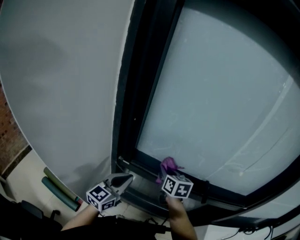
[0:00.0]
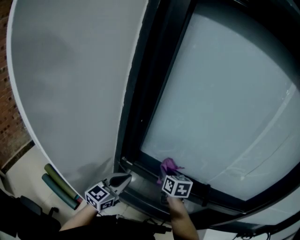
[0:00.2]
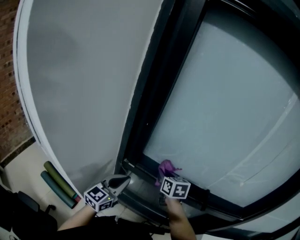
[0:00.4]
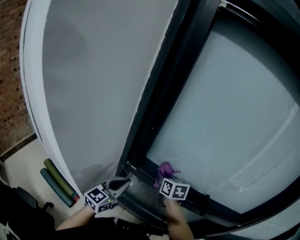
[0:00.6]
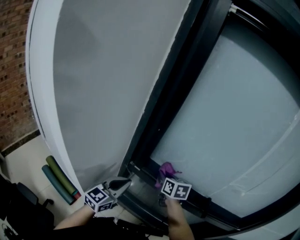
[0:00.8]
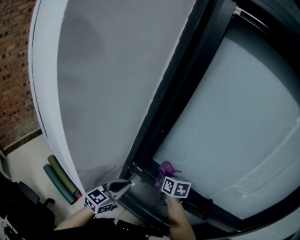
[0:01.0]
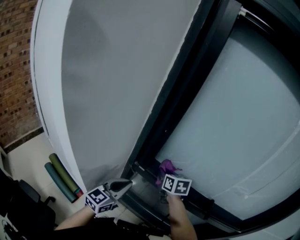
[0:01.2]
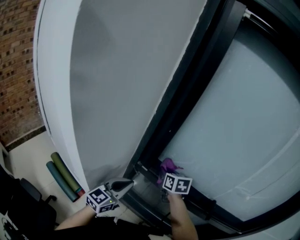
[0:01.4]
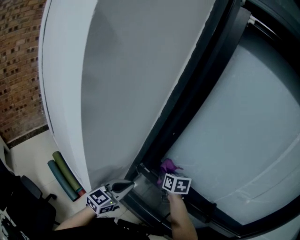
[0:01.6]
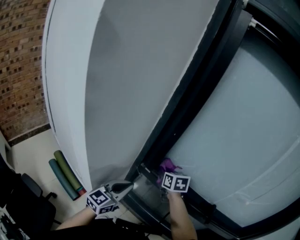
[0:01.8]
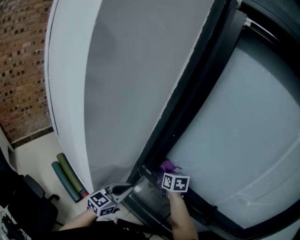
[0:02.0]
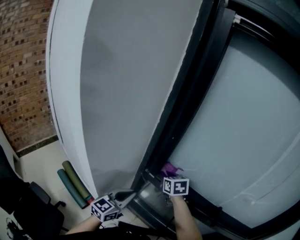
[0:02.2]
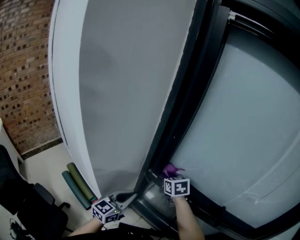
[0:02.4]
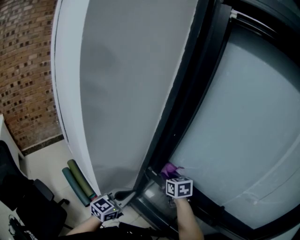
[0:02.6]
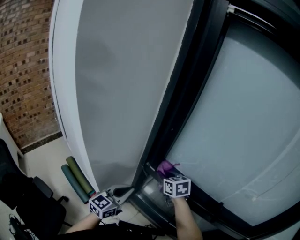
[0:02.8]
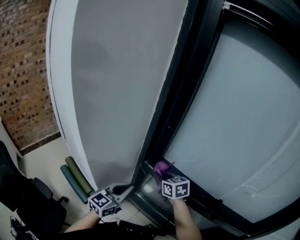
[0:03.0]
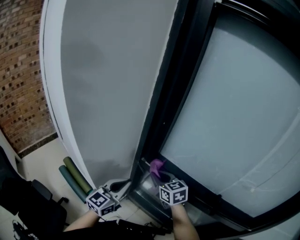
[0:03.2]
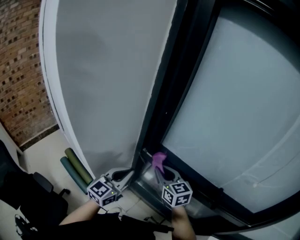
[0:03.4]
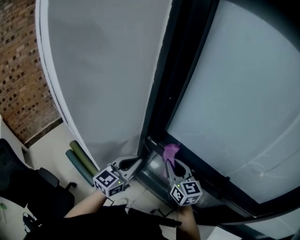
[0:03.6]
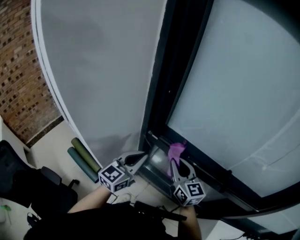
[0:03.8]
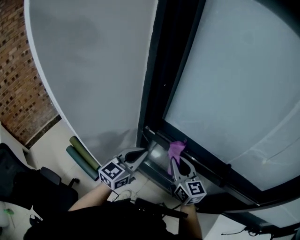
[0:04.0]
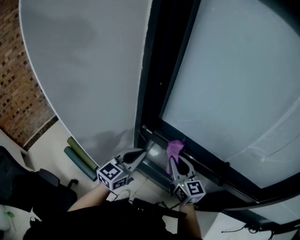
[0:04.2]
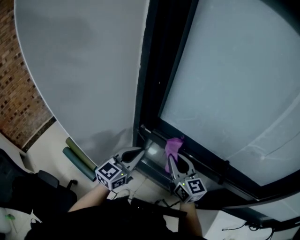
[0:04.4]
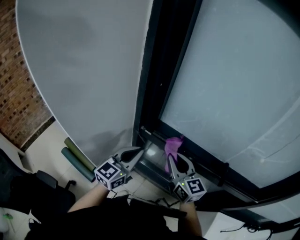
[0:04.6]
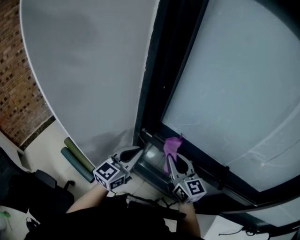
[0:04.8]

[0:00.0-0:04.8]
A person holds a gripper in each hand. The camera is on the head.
0:00.0 to 0:01.6: The right gripper is displaced to the left by about 10 cm, and changes its angle by some 20 degrees. The left gripper travels to the left by approximately 5 cm.
0:01.6 to 0:03.2: The right gripper goes about 10 cm backward, and rotates about 20 degrees.
0:03.2 to 0:04.8: The left gripper ends up roughly 5 cm from where it was. The right gripper shifts some 10 cm to the right and backward, and swivels approximately 30 degrees.

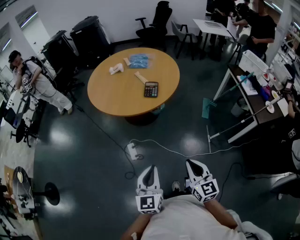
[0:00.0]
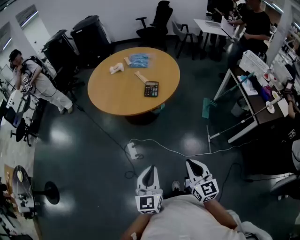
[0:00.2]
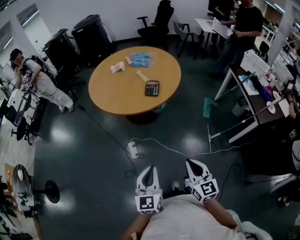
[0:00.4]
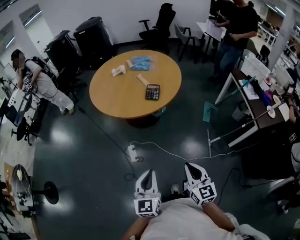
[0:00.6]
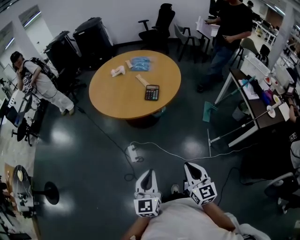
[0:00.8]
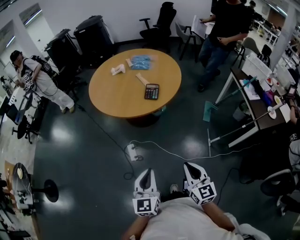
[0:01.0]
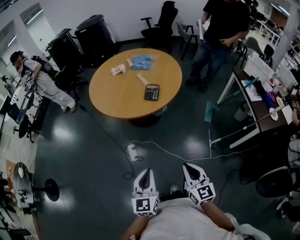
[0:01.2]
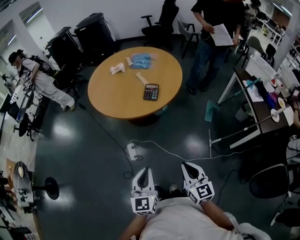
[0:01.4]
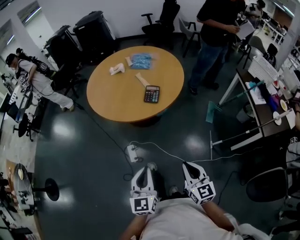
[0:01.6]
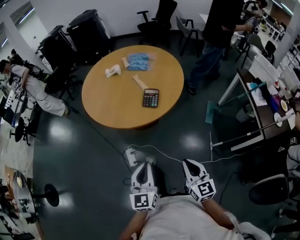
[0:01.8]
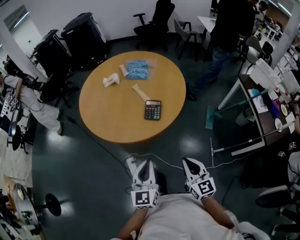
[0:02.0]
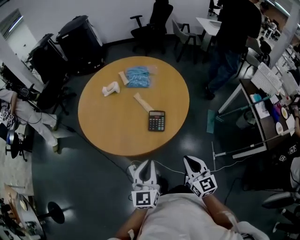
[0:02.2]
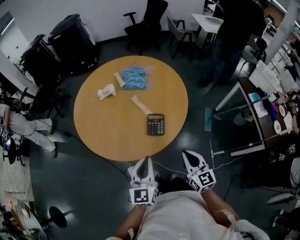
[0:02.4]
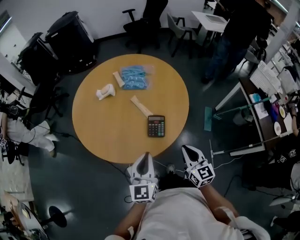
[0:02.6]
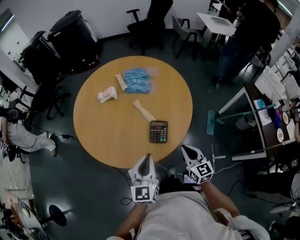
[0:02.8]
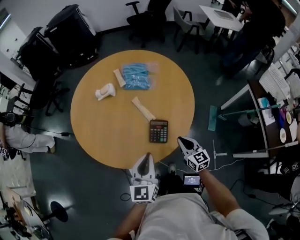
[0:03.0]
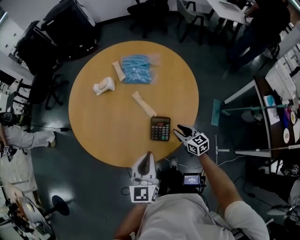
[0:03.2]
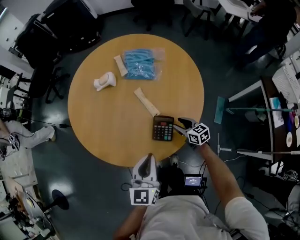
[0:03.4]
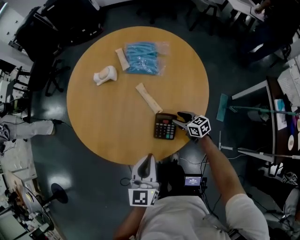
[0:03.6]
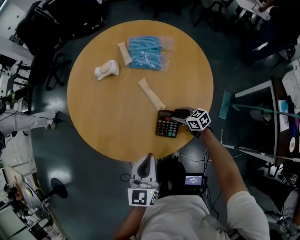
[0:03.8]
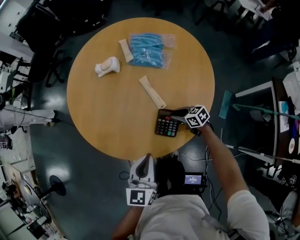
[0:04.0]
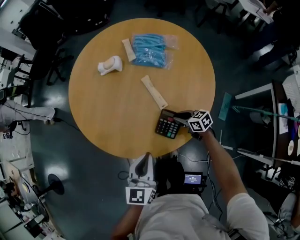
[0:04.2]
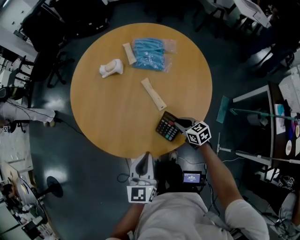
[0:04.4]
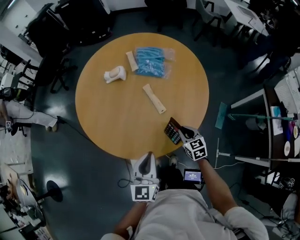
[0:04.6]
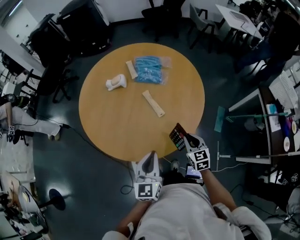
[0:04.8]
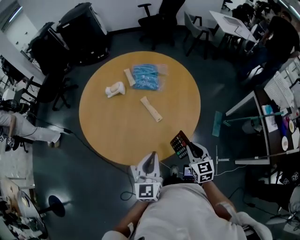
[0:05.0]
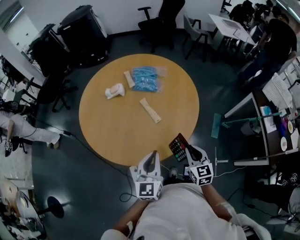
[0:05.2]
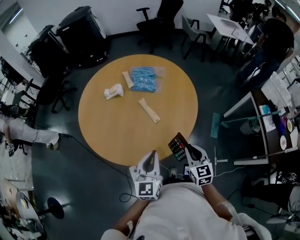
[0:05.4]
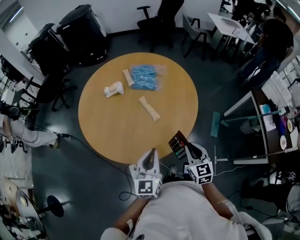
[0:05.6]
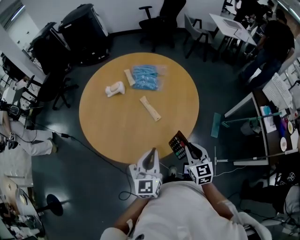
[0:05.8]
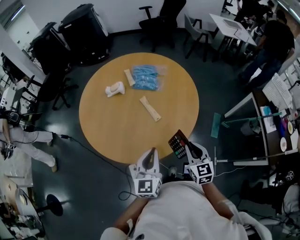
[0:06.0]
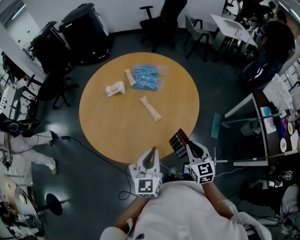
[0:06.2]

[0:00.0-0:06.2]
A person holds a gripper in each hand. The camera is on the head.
0:00.0 to 0:01.6: Both grippers travel together forward, some 10 cm.
0:01.6 to 0:03.2: Both grippers are carried forward, about 50 cm. The right gripper changes its angle by some 20 degrees, and opens up.
0:03.2 to 0:04.6: The right gripper goes downward and returns, some 10 cm each way, and opens, then closes once more.
0:04.6 to 0:06.2: The right gripper shifts some 20 cm upward and backward, and swivels about 20 degrees. Meanwhile the left gripper travels upward by roughly 5 cm.

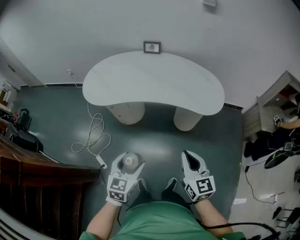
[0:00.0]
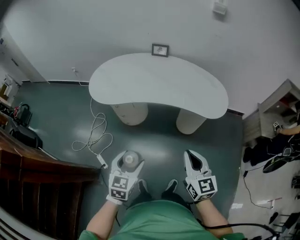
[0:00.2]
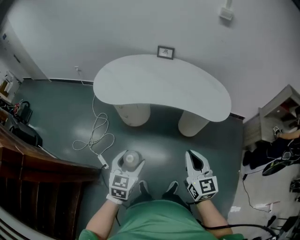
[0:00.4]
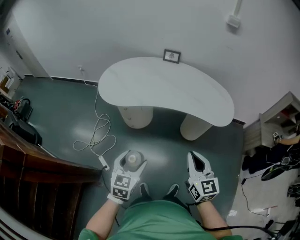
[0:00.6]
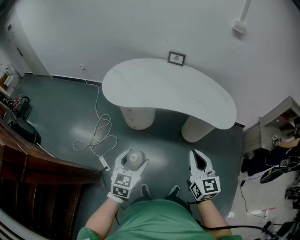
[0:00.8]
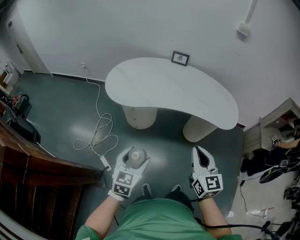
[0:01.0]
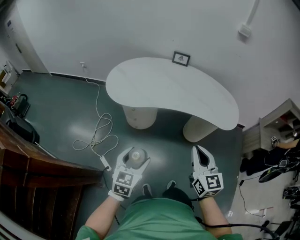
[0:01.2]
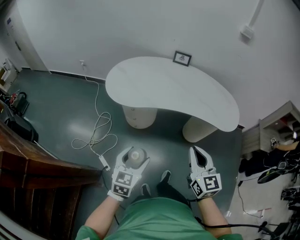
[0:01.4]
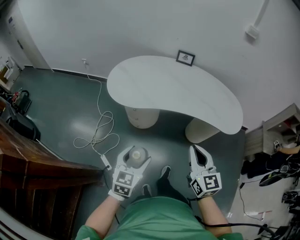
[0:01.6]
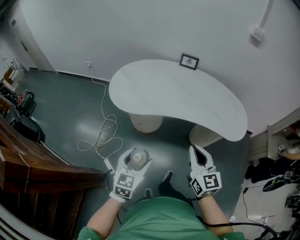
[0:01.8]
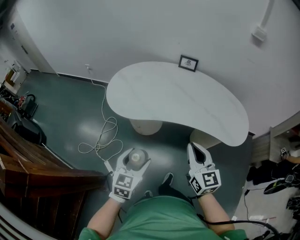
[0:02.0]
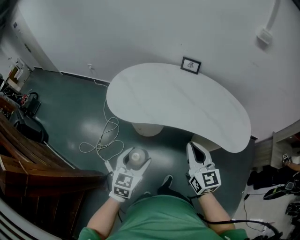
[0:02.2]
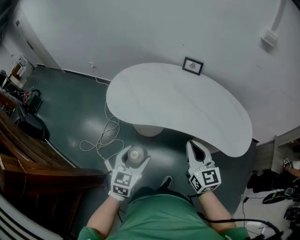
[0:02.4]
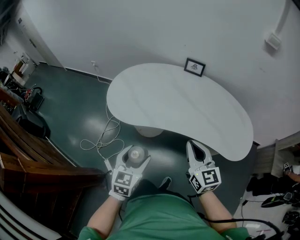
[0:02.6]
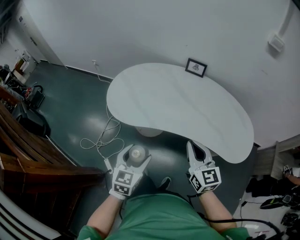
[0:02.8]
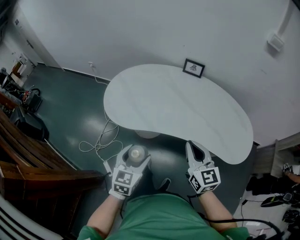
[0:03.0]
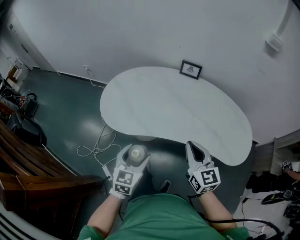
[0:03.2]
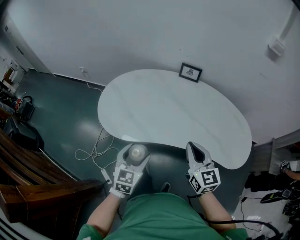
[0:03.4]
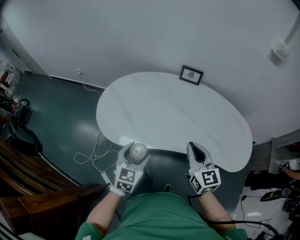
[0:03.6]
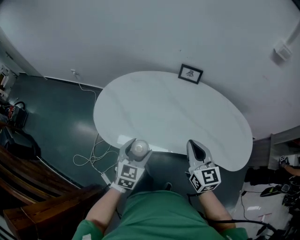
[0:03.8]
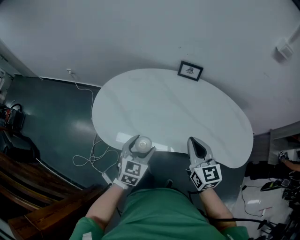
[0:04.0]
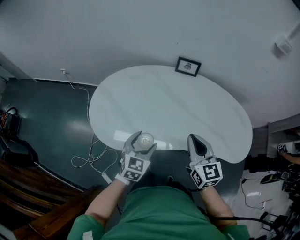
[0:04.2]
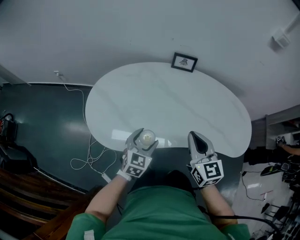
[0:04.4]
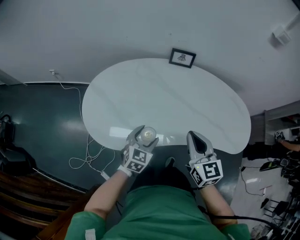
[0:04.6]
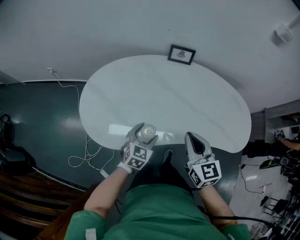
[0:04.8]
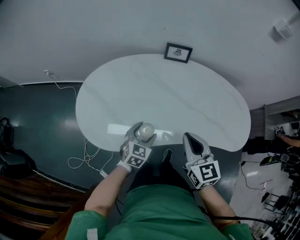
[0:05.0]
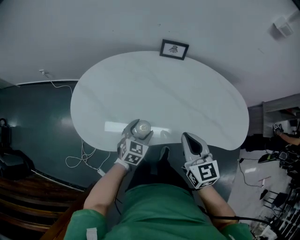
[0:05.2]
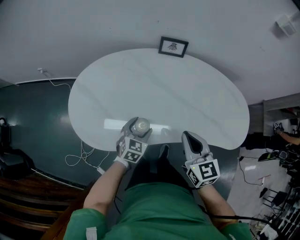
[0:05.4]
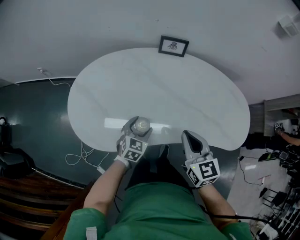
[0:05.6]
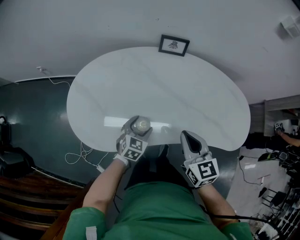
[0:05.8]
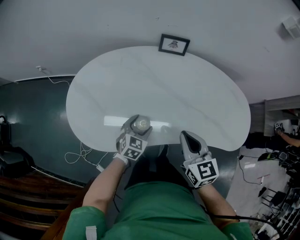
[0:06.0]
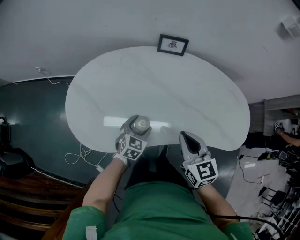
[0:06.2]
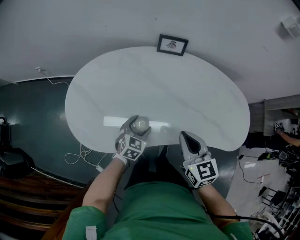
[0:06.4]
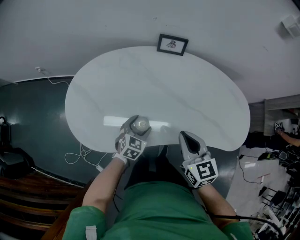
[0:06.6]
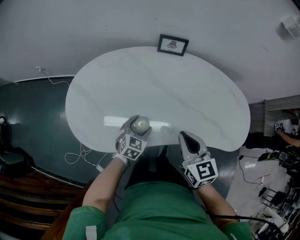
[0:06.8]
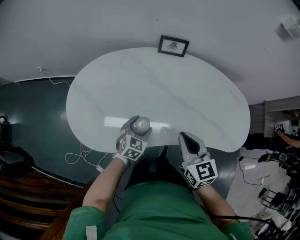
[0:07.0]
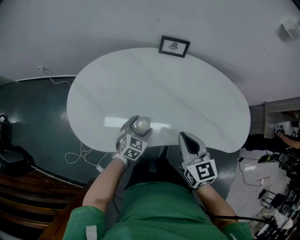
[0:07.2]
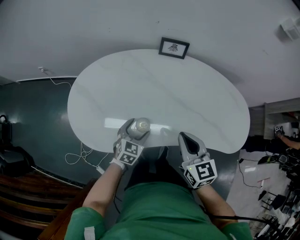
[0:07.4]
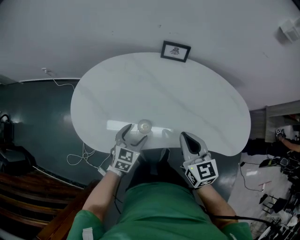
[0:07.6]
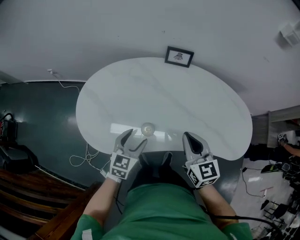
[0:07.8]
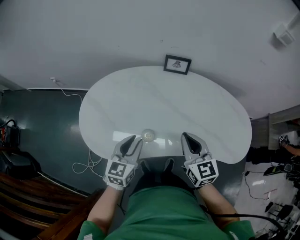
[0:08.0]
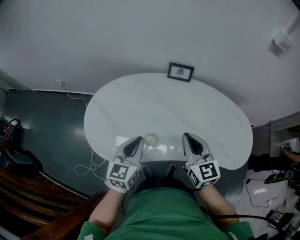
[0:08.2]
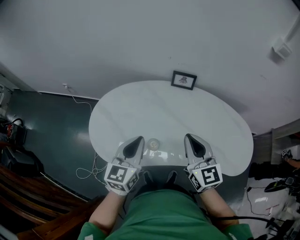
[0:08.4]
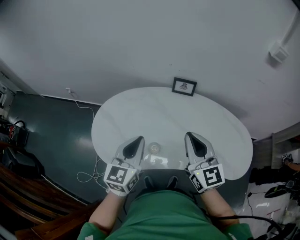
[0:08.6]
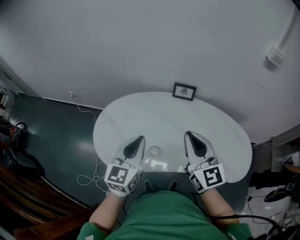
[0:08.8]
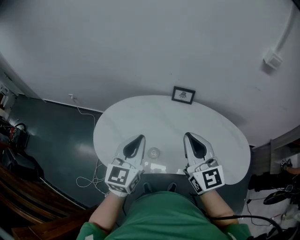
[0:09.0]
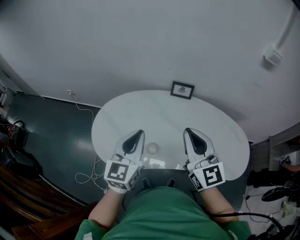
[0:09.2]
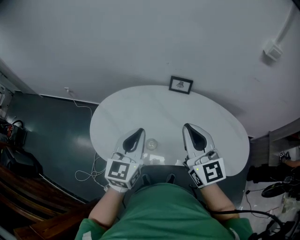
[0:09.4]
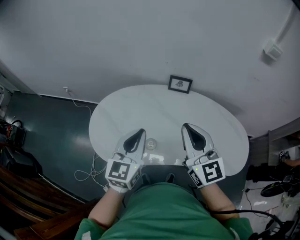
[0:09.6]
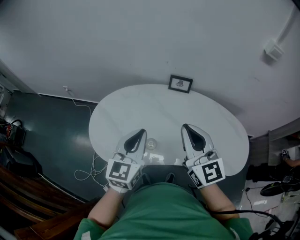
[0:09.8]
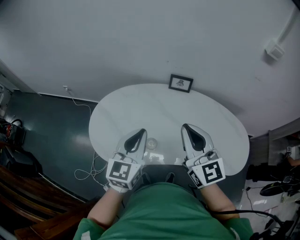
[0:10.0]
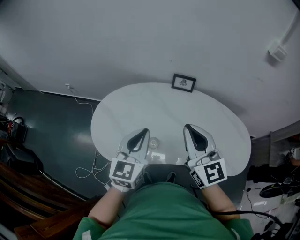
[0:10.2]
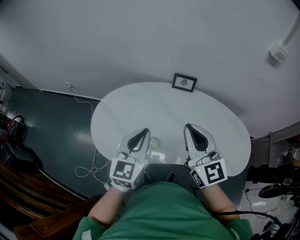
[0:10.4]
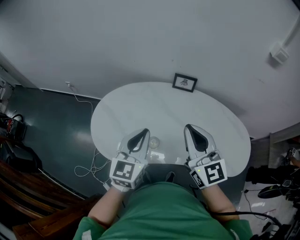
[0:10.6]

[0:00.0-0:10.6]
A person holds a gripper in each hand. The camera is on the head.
0:00.0 to 0:01.6: The two grippers go some 20 cm to the left.
0:01.6 to 0:03.0: Both grippers travel together forward, roughly 20 cm.
0:03.0 to 0:04.6: The right gripper moves forward and to the left, approximately 15 cm. Meanwhile the left gripper travels forward and downward by about 25 cm, and changes its angle by about 30 degrees.
0:04.6 to 0:06.0: The right gripper travels downward by roughly 5 cm. The left gripper goes some 10 cm downward and forward.
0:06.0 to 0:07.6: The left gripper moves about 5 cm.
0:07.6 to 0:09.0: The two grippers go about 25 cm upward. The right gripper changes its angle by some 30 degrees; the left gripper rotates some 30 degrees, and closes its fingers.
0:09.0 to 0:10.6: There are only small adjustments of the grippers.

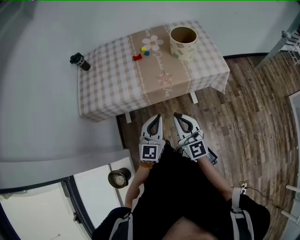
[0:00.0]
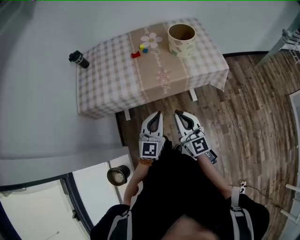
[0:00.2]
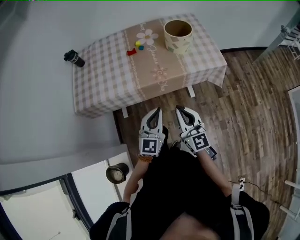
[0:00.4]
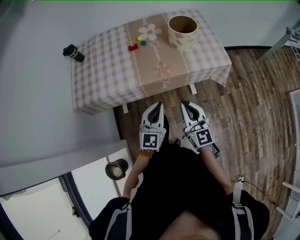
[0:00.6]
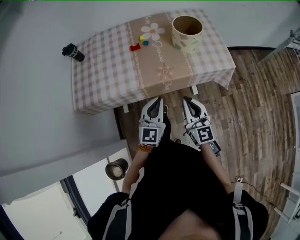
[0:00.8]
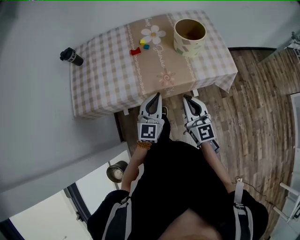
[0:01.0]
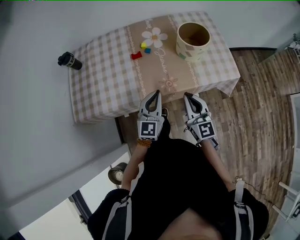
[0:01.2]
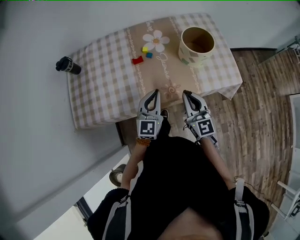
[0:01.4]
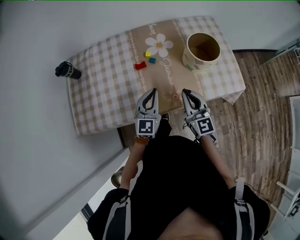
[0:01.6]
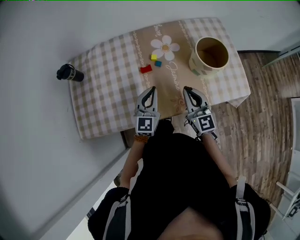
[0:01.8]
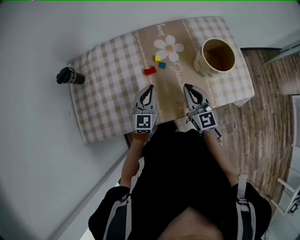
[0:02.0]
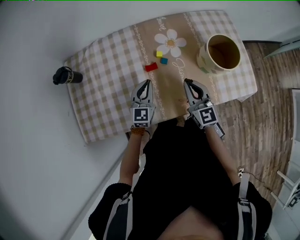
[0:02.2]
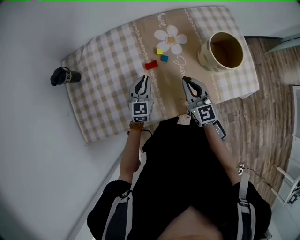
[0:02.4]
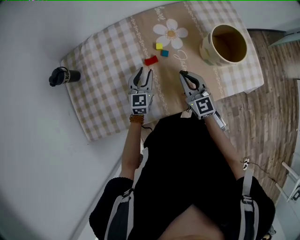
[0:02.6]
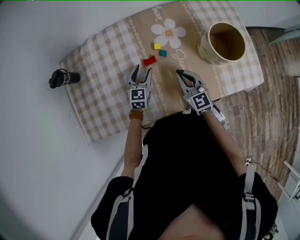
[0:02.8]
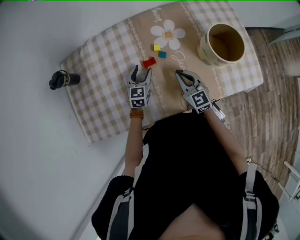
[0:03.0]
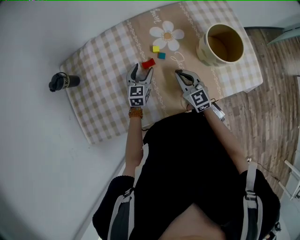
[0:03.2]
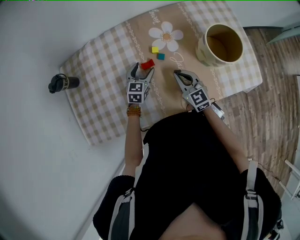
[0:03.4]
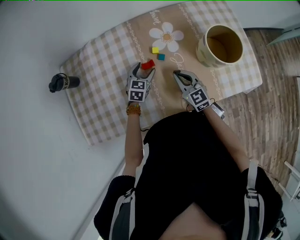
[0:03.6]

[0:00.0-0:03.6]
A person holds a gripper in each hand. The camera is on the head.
0:00.0 to 0:01.8: Both grippers move forward, about 35 cm.
0:01.8 to 0:03.6: The left gripper goes approximately 25 cm downward and forward, tips its fingers downward by about 30 degrees, and opens; the right gripper is displaced downward, forward and to the left by approximately 20 cm.
